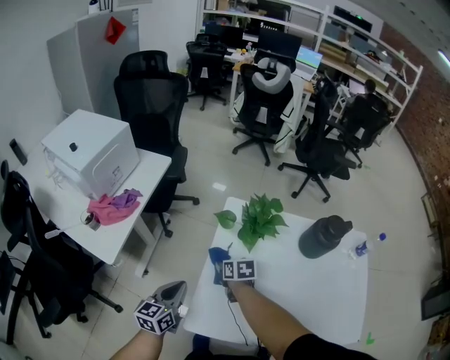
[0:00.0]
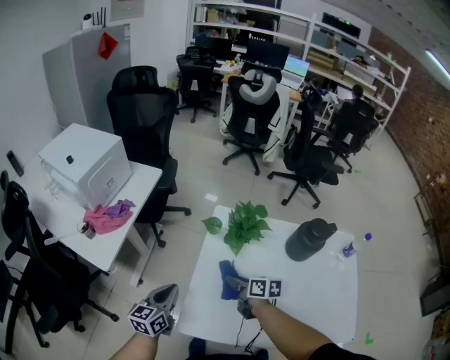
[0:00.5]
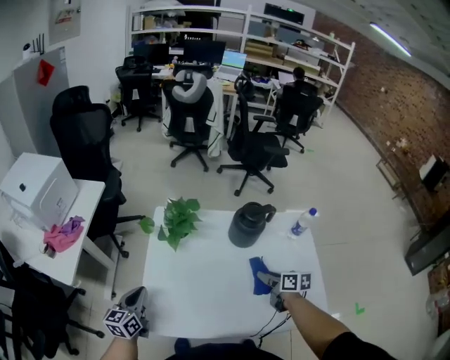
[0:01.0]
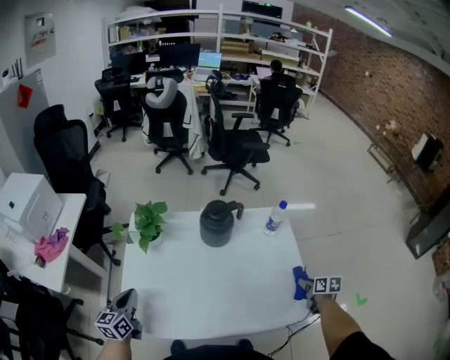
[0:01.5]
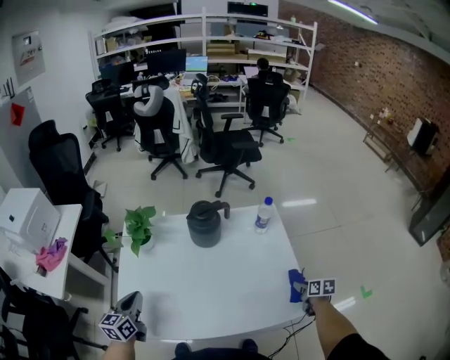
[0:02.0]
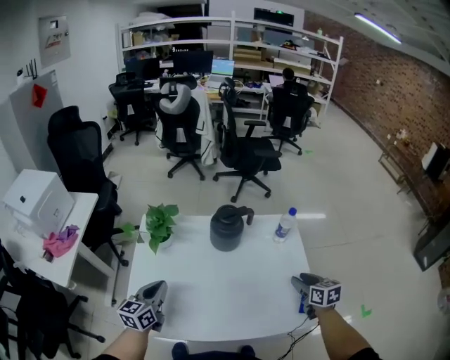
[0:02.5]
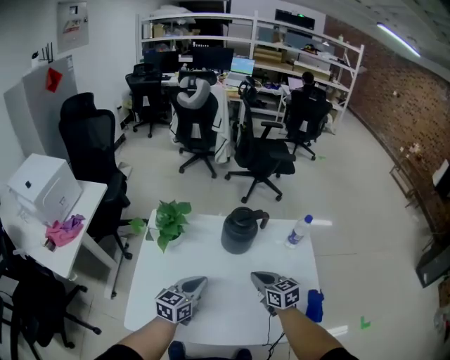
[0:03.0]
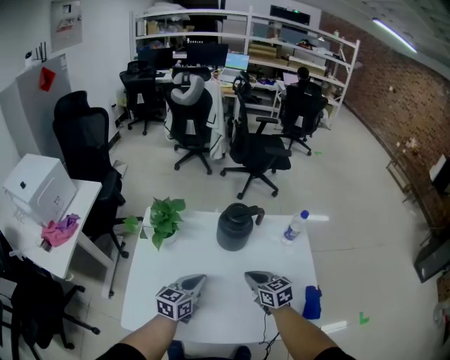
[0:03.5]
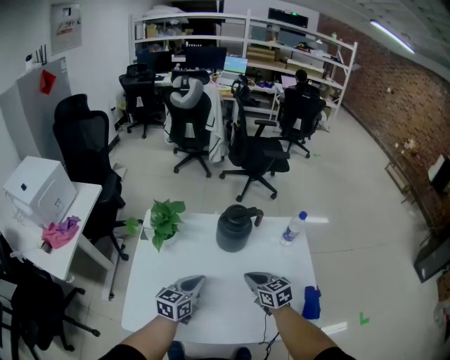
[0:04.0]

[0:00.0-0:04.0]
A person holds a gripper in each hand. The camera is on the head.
0:00.0 to 0:02.0: The left gripper moves to the right, some 20 cm. The right gripper travels to the right and backward by about 80 cm, and rotates about 40 degrees.
0:02.0 to 0:04.0: The left gripper shifts some 15 cm to the right and forward, while the right gripper heads to the left and forward, covering roughly 35 cm, rotates about 50 degrees, and closes.

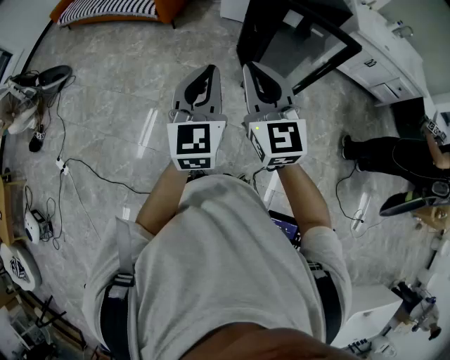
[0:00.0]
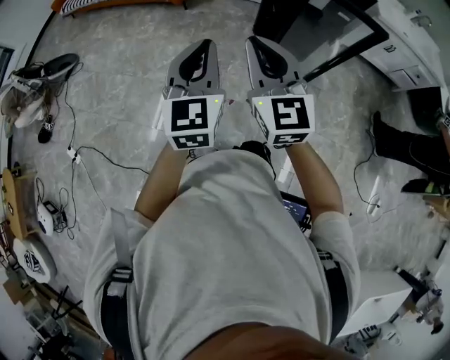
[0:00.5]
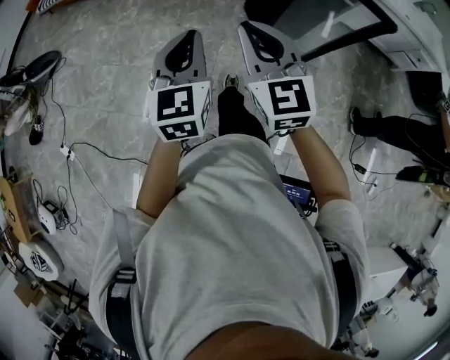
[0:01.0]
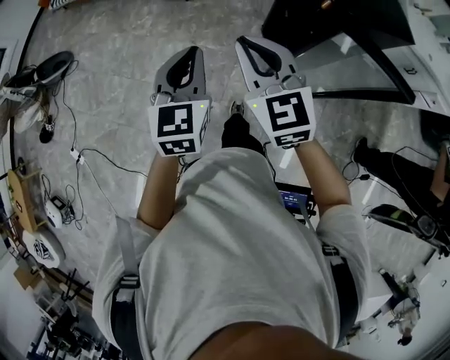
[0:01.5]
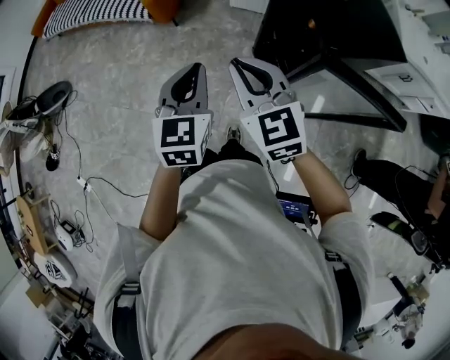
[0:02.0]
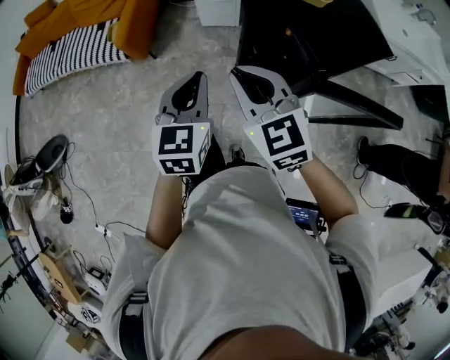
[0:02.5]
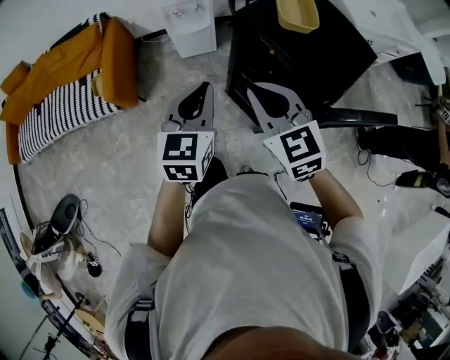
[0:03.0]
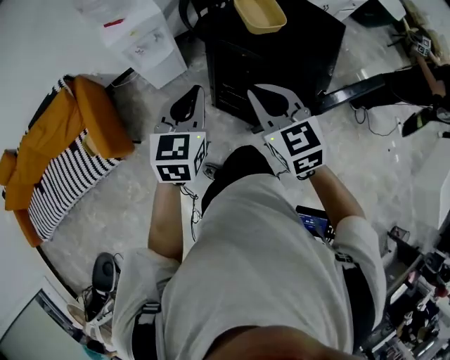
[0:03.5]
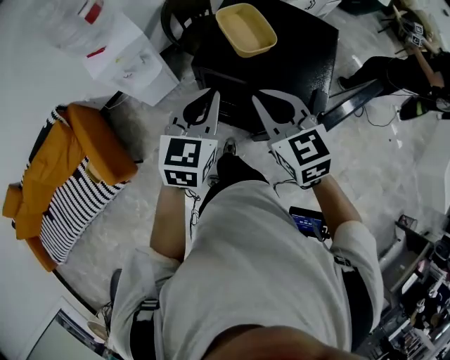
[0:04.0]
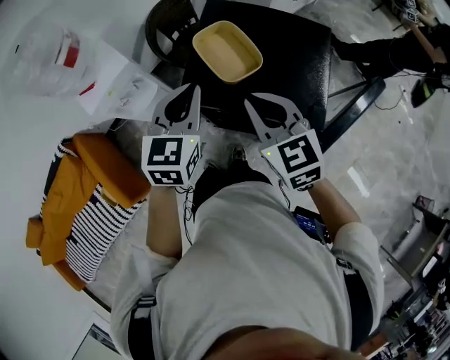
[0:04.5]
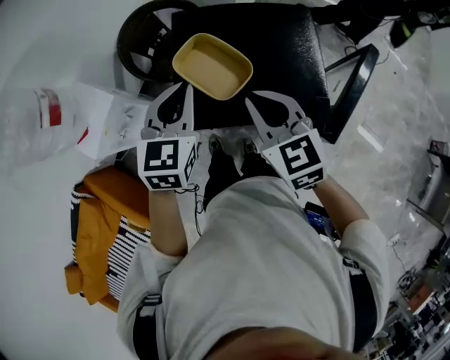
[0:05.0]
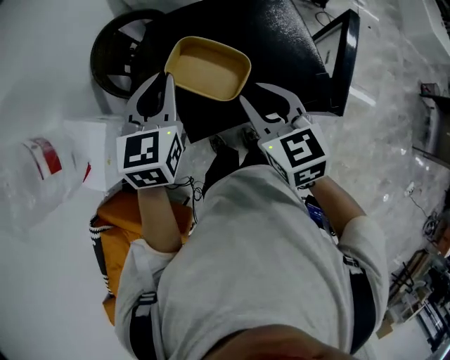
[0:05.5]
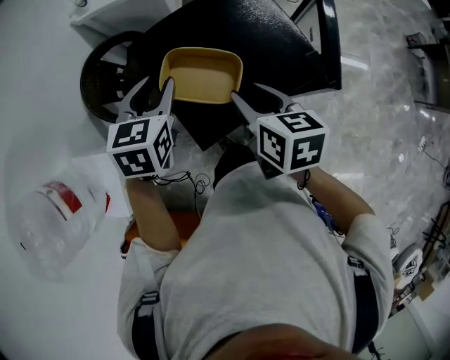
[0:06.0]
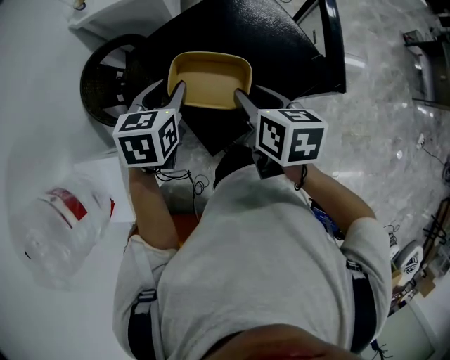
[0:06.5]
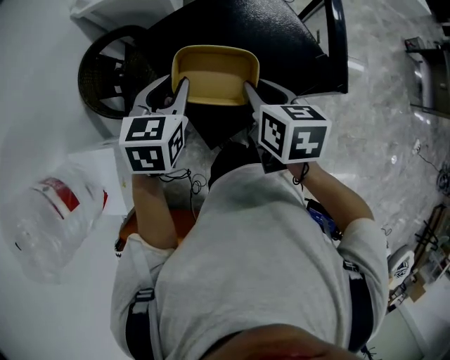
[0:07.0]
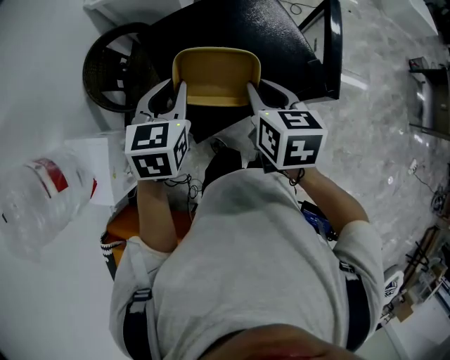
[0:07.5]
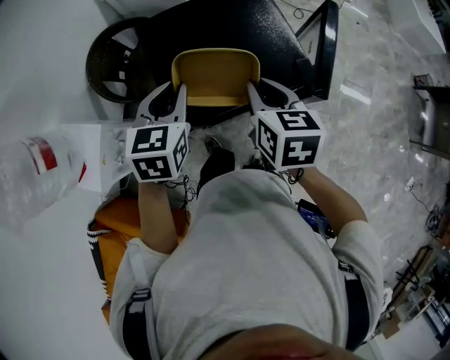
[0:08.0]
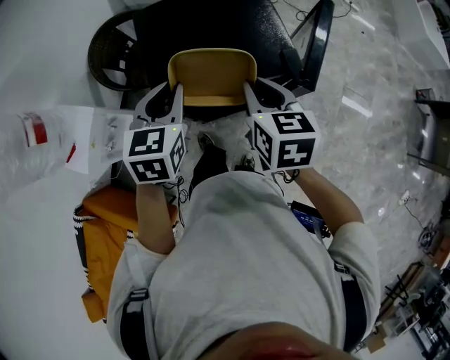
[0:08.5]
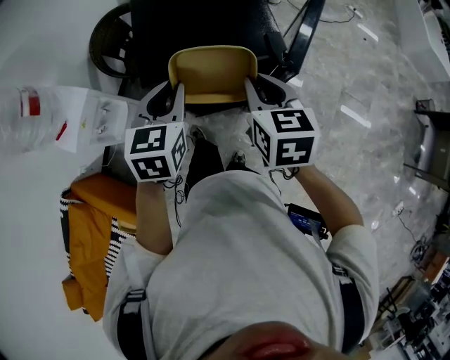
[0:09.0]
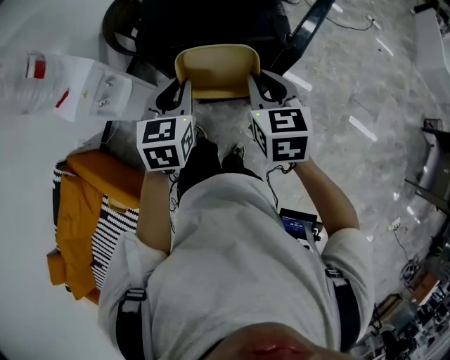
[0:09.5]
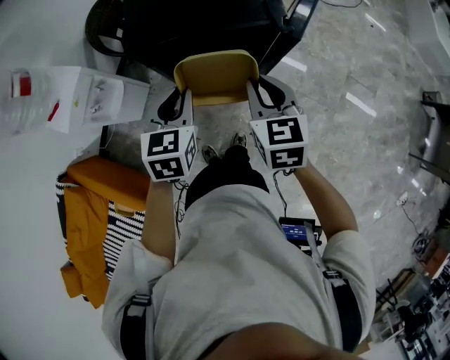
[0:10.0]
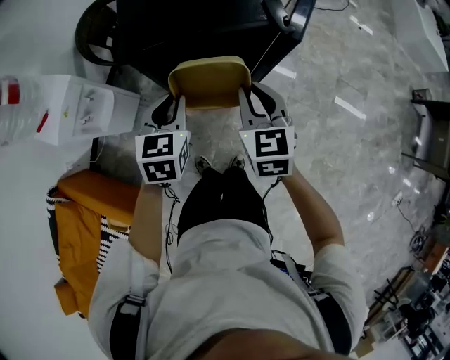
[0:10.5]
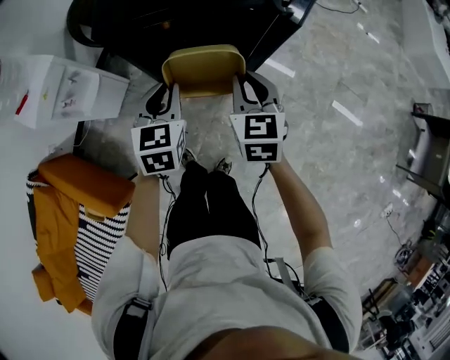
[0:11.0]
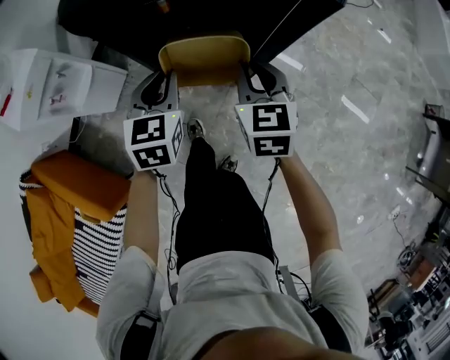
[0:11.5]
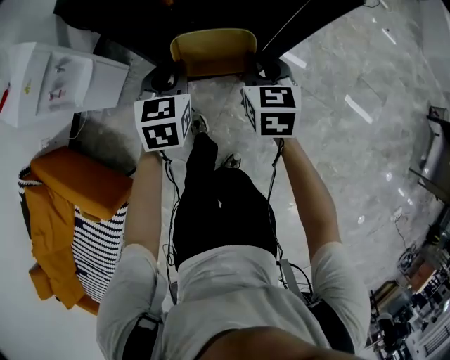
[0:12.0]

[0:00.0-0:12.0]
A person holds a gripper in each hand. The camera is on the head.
0:00.0 to 0:02.0: The pair of grippers is taken forward, about 40 cm.
0:02.0 to 0:04.0: The right gripper moves roughly 30 cm, and turns by some 50 degrees. The left gripper ends up some 40 cm from where it was, and swivels some 60 degrees.
0:04.0 to 0:06.0: The right gripper moves approximately 15 cm, turns by about 70 degrees, and opens, while the left gripper shifts by roughly 25 cm, swivels roughly 40 degrees, and opens its fingers.
0:06.0 to 0:08.0: The right gripper is displaced to the right by some 5 cm, and closes up. Meanwhile the left gripper goes roughly 10 cm backward and to the right.
0:08.0 to 0:10.0: The right gripper moves backward, downward and to the right, approximately 20 cm, and changes its angle by approximately 20 degrees; the left gripper moves backward and downward, approximately 20 cm.
0:10.0 to 0:12.0: The grippers both shift downward by about 25 cm.

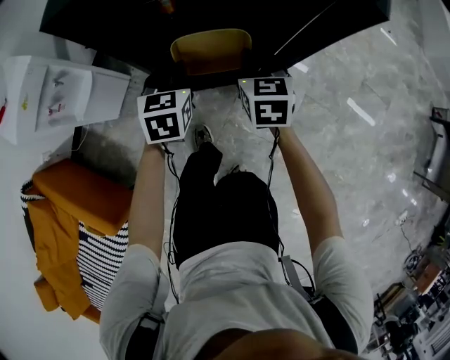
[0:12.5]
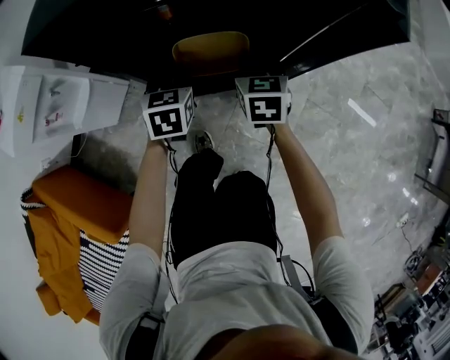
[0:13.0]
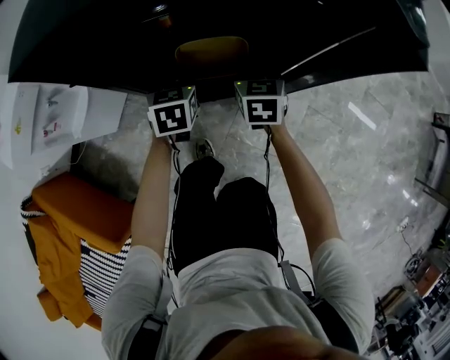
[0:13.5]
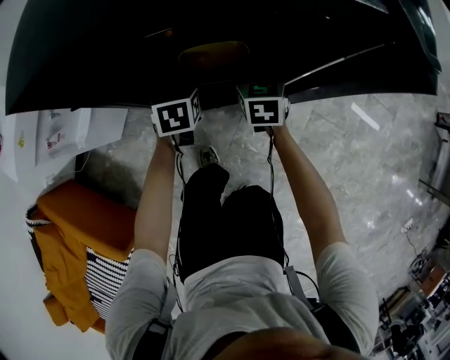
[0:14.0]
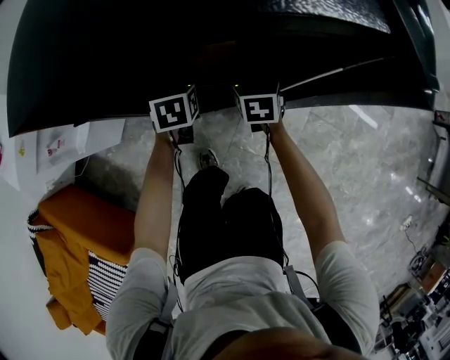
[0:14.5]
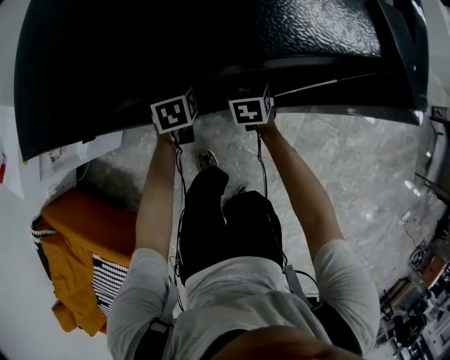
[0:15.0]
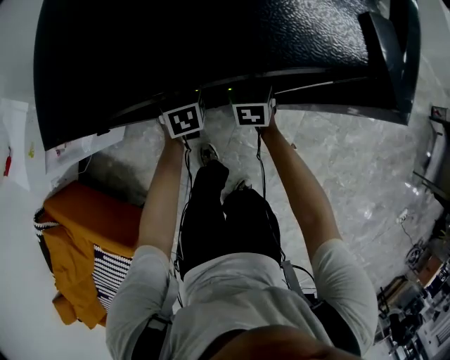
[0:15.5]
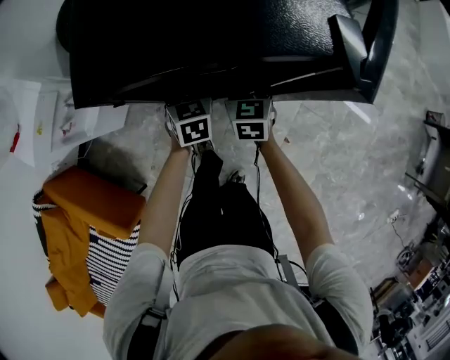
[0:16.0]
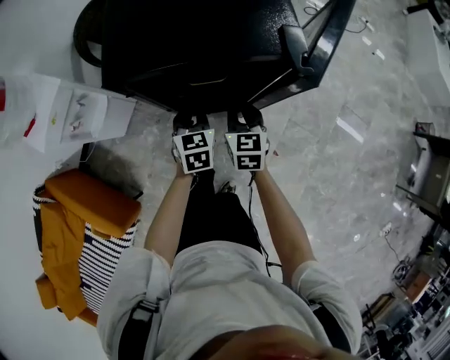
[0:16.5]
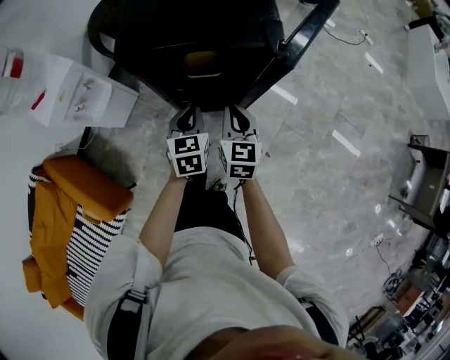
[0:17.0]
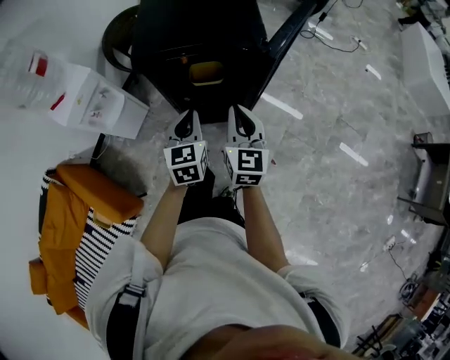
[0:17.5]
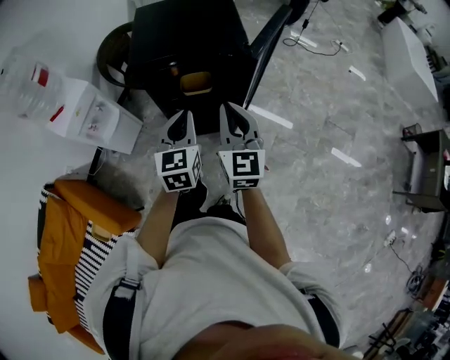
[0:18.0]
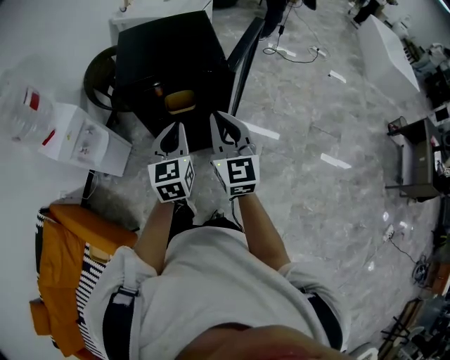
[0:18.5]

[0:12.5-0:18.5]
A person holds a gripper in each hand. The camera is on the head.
0:12.5 to 0:14.5: The grippers both shift forward and downward by some 15 cm.
0:14.5 to 0:16.5: Both grippers travel together upward and backward, roughly 20 cm. The right gripper opens, then closes again.
0:16.5 to 0:18.5: The grippers both shift upward and backward by about 30 cm. The left gripper rotates about 20 degrees; the right gripper tilts its fingers approximately 30 degrees upward.

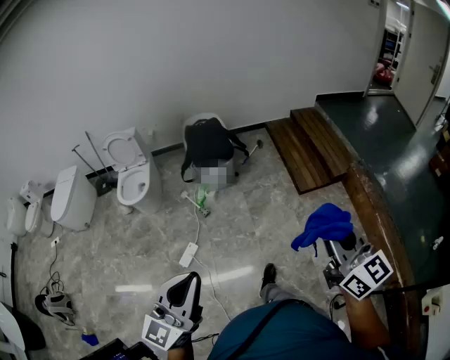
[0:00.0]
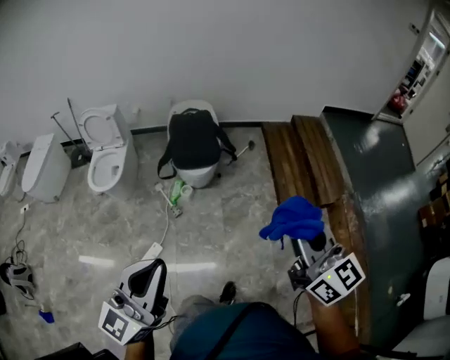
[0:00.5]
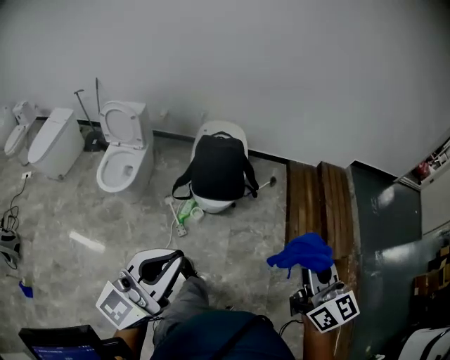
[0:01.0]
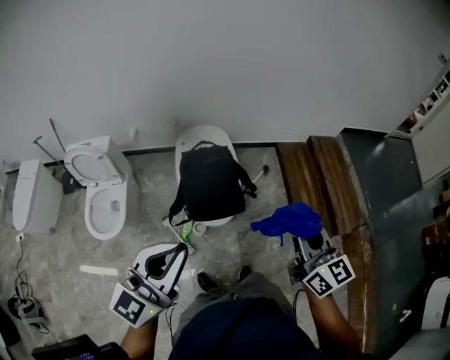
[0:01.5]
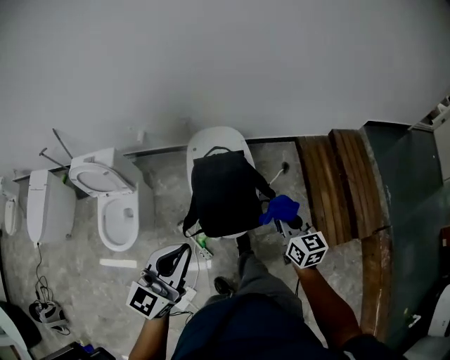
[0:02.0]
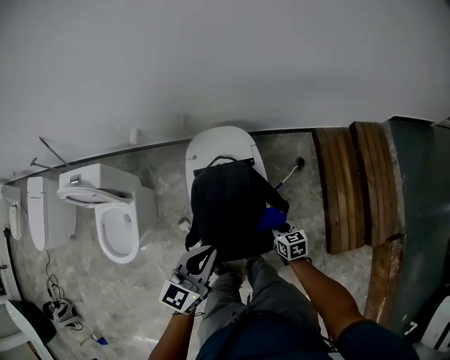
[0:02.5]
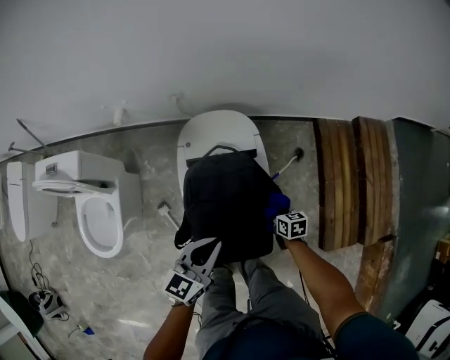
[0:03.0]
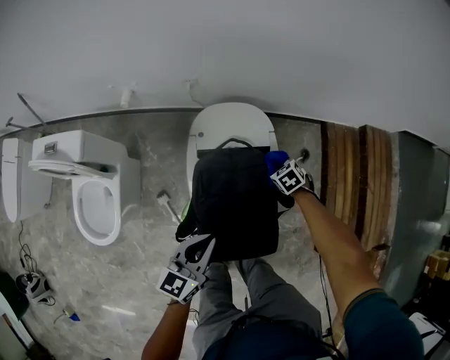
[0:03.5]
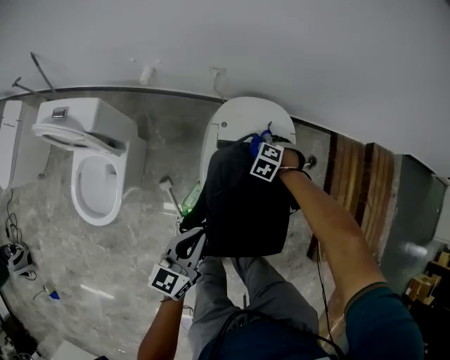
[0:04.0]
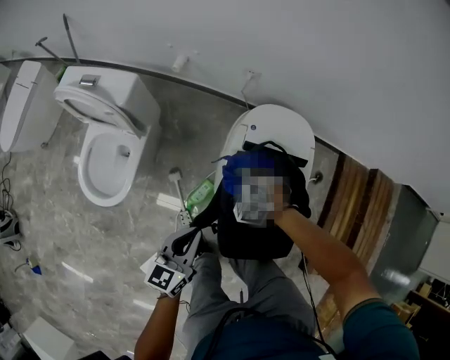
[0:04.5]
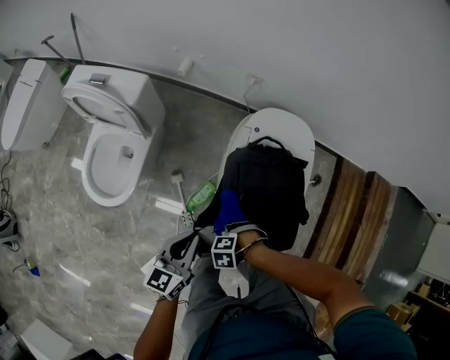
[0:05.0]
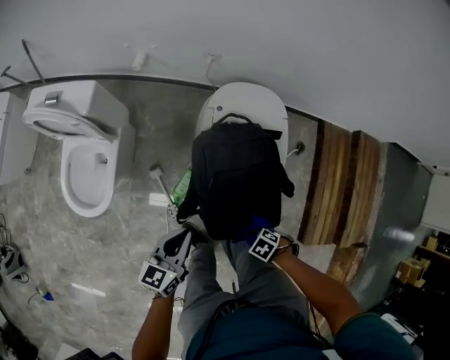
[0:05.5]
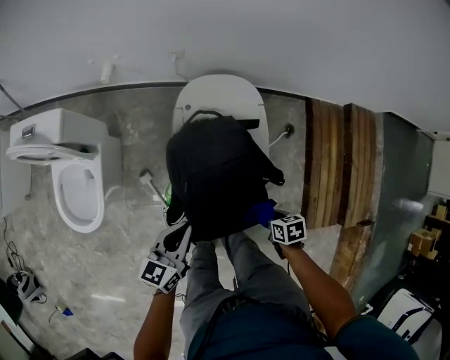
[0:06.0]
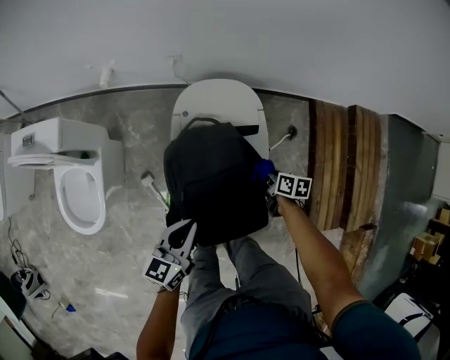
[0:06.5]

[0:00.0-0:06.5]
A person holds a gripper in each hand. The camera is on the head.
0:00.0 to 0:02.0: Both grippers are carried forward, some 80 cm. The right gripper swivels about 20 degrees.
0:02.0 to 0:04.5: The left gripper is displaced downward by roughly 30 cm, and rotates some 40 degrees, while the right gripper shifts by roughly 50 cm, and angles its fingers downward, by approximately 50 degrees.
0:04.5 to 0:06.5: The left gripper moves about 15 cm. Meanwhile the right gripper changes place by roughly 30 cm, and rotates around the line of its fingers by about 110 degrees, clockwise from behind.
